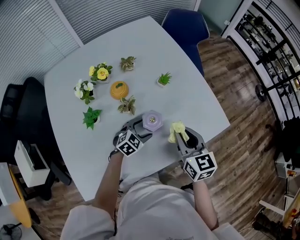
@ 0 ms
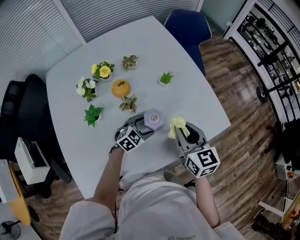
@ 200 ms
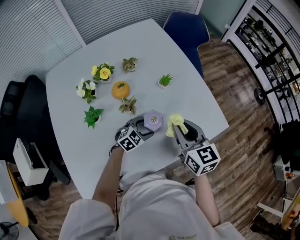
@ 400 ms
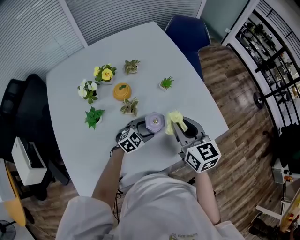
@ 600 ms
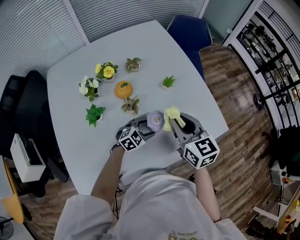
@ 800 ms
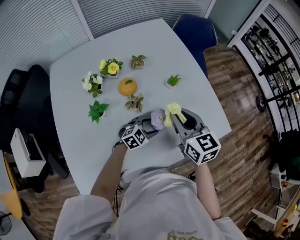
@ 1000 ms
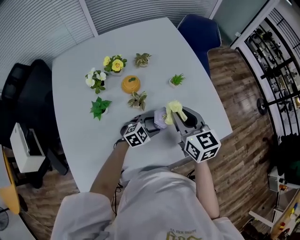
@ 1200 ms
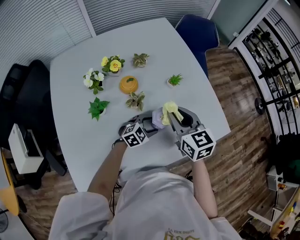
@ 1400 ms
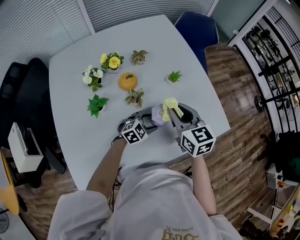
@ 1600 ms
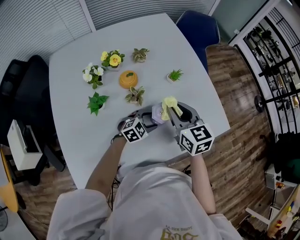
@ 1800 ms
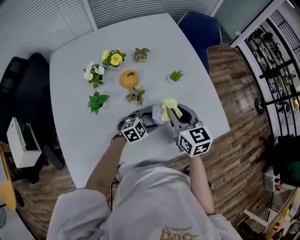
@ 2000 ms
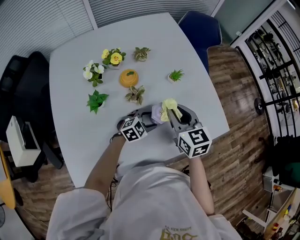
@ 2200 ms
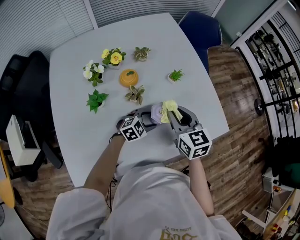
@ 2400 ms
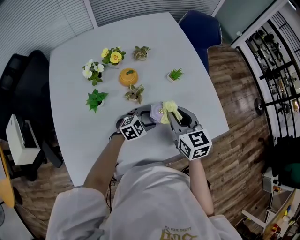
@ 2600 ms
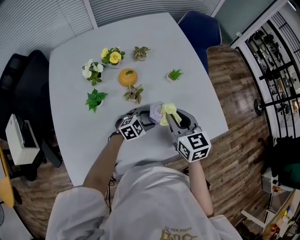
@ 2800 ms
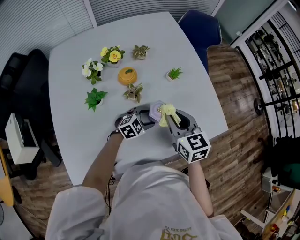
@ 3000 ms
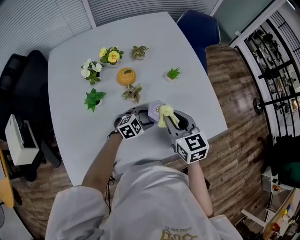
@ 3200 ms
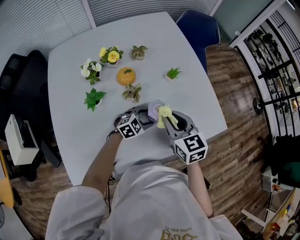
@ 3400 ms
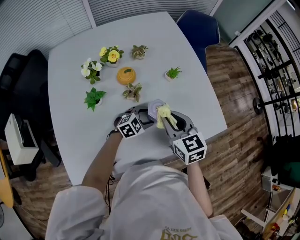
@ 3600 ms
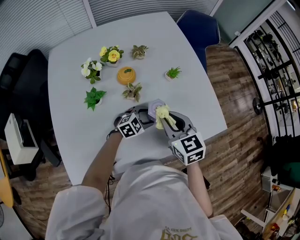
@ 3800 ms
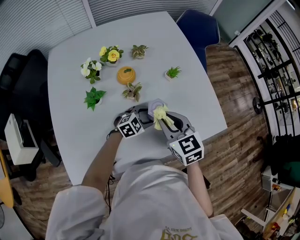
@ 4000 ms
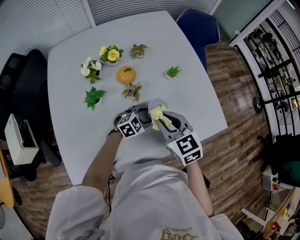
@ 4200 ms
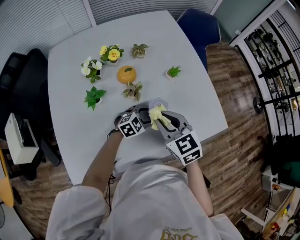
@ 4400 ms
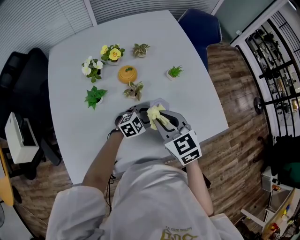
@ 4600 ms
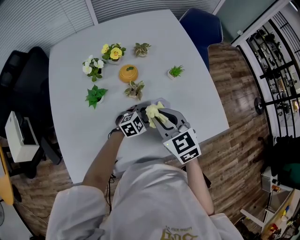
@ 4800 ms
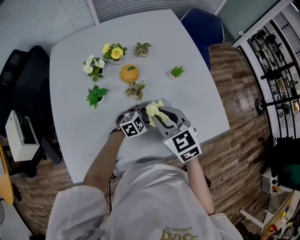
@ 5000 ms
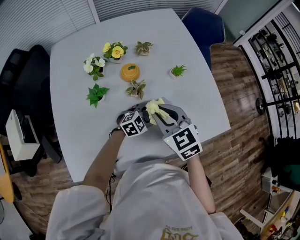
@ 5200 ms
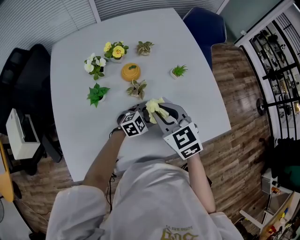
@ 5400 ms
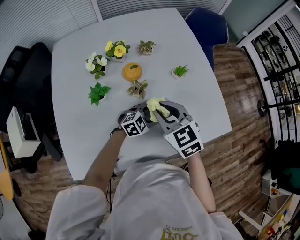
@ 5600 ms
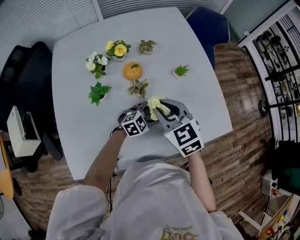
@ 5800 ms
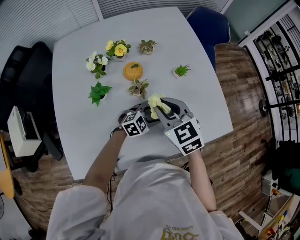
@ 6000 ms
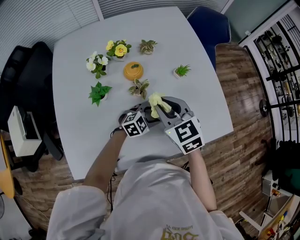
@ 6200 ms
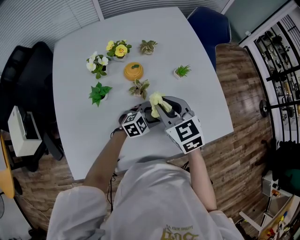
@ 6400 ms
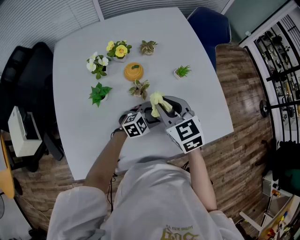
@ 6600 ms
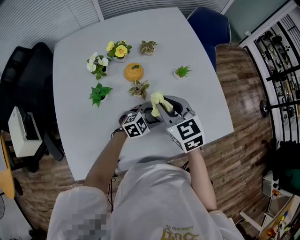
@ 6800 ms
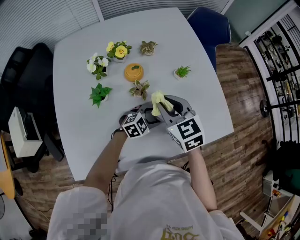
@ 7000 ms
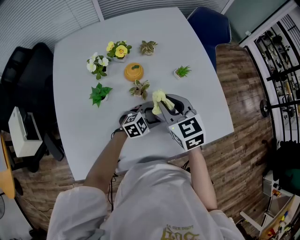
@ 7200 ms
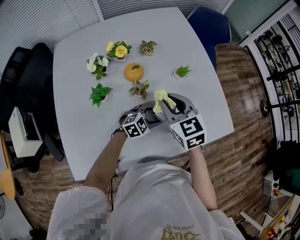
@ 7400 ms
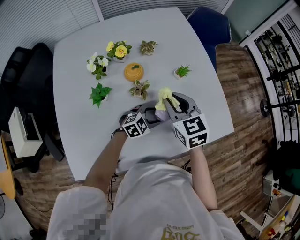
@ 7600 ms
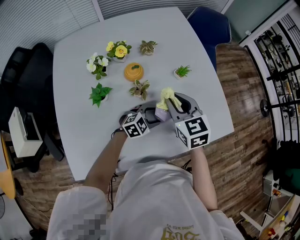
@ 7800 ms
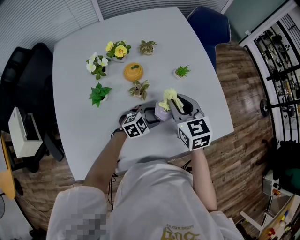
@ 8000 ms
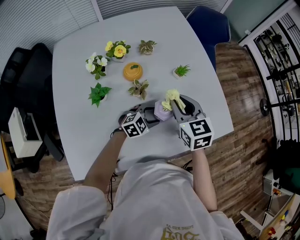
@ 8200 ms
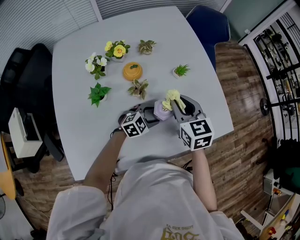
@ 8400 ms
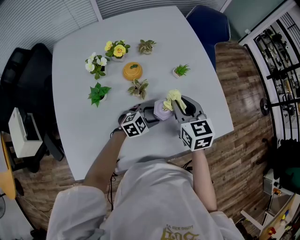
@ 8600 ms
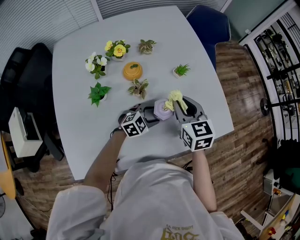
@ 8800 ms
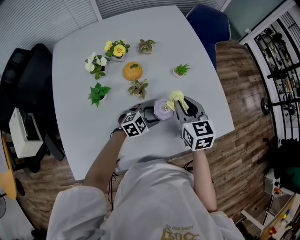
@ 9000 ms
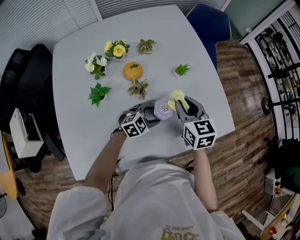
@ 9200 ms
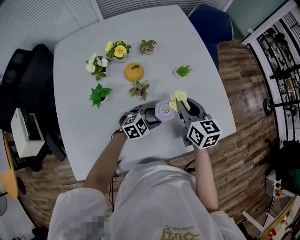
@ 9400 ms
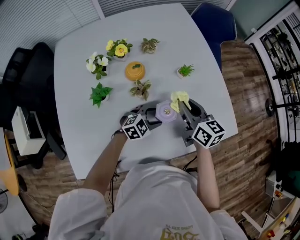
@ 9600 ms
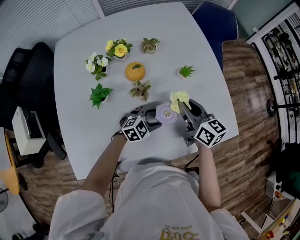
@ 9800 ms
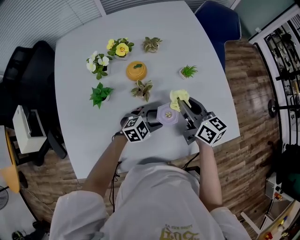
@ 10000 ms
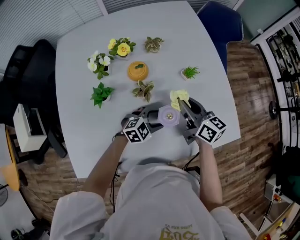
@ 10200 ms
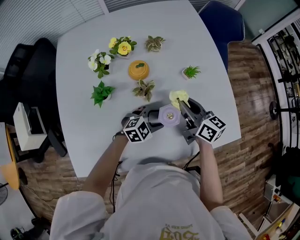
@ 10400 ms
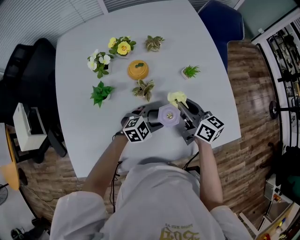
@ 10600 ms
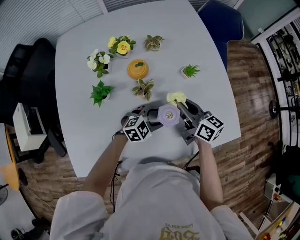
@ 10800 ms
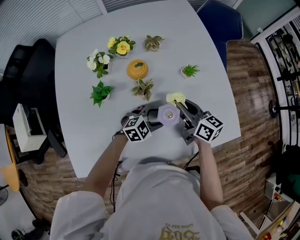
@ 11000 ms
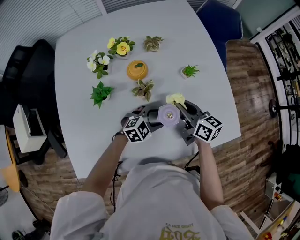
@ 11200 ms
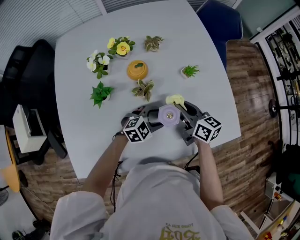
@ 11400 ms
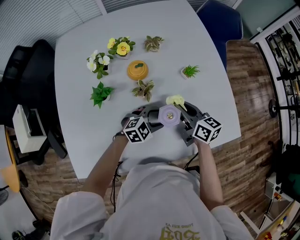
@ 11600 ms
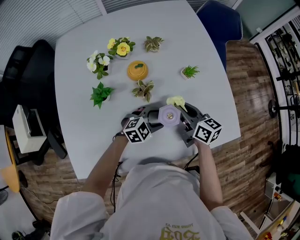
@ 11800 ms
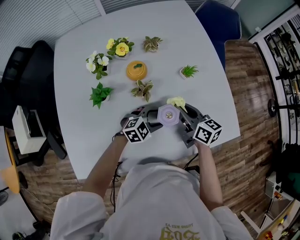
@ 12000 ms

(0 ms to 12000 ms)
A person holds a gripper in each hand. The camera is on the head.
0 ms - 1600 ms: The right gripper shifts approximately 10 cm to the left.
1600 ms - 3000 ms: There are only small adjustments of the grippers.
3000 ms - 4400 ms: The right gripper changes place by some 5 cm.
4400 ms - 6000 ms: The right gripper changes place by some 5 cm.
6000 ms - 7600 ms: The grippers stay close to where they were, moving slightly.
7600 ms - 9000 ms: The right gripper shifts roughly 5 cm to the right.
9000 ms - 10400 ms: The right gripper ends up approximately 5 cm from where it was, and rotates some 40 degrees.
10400 ms - 12000 ms: The grippers stay close to where they were, moving slightly.

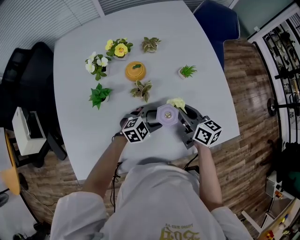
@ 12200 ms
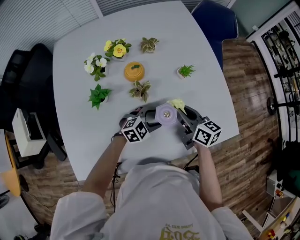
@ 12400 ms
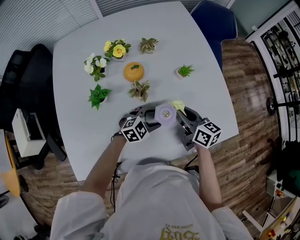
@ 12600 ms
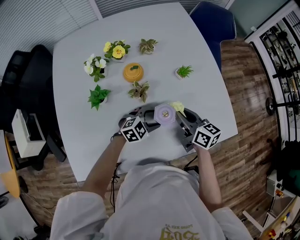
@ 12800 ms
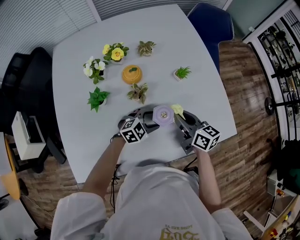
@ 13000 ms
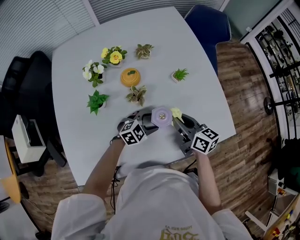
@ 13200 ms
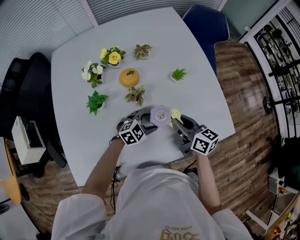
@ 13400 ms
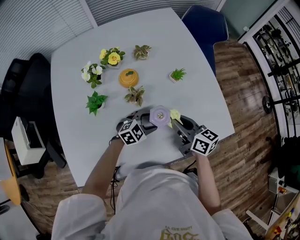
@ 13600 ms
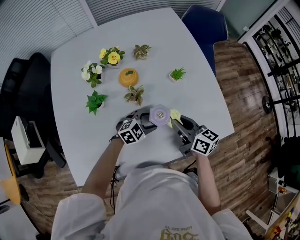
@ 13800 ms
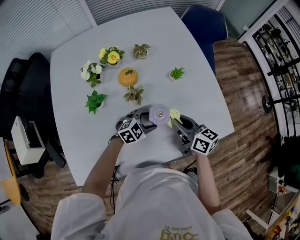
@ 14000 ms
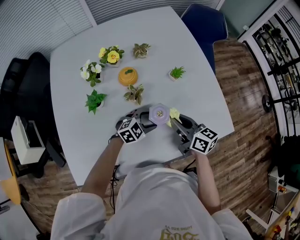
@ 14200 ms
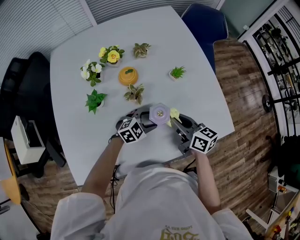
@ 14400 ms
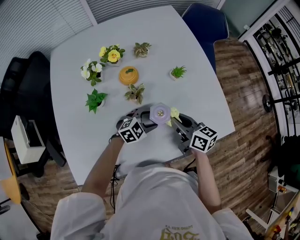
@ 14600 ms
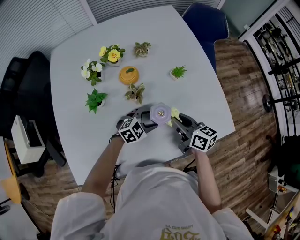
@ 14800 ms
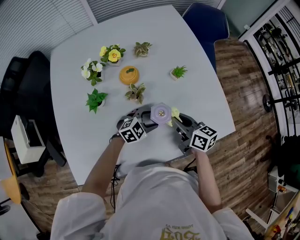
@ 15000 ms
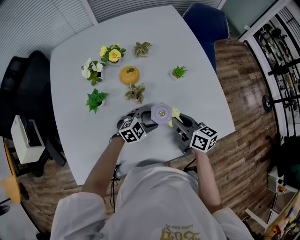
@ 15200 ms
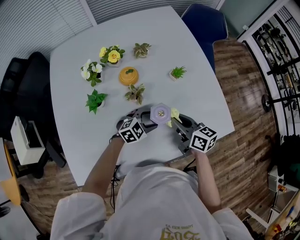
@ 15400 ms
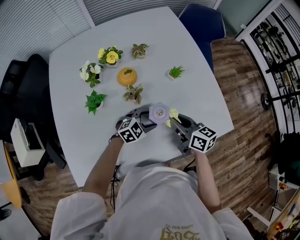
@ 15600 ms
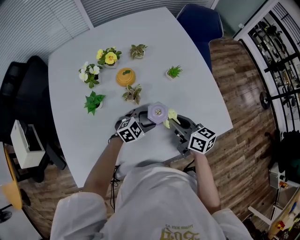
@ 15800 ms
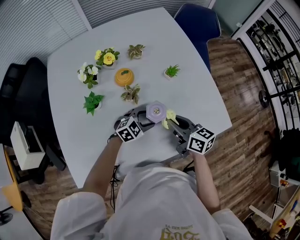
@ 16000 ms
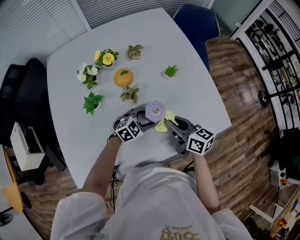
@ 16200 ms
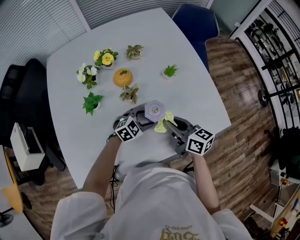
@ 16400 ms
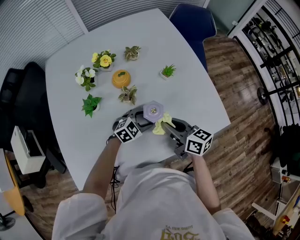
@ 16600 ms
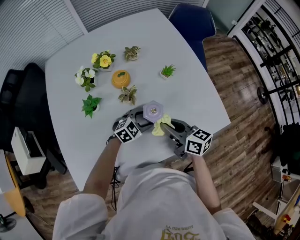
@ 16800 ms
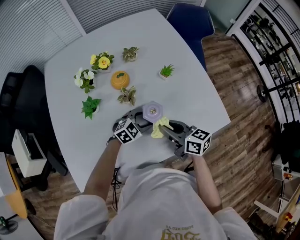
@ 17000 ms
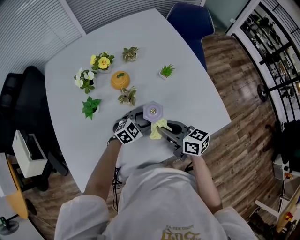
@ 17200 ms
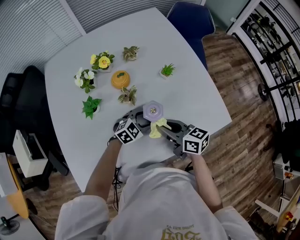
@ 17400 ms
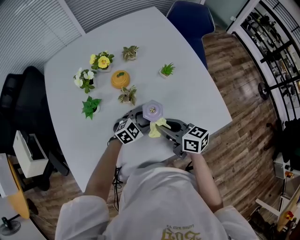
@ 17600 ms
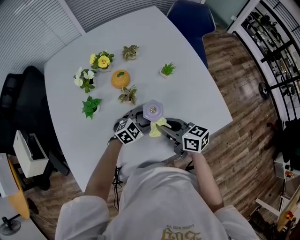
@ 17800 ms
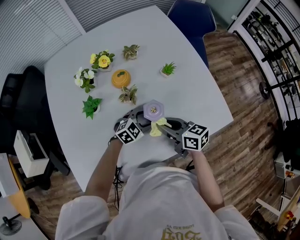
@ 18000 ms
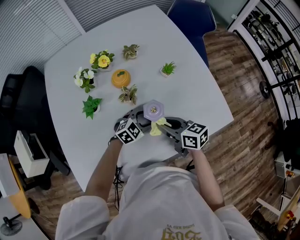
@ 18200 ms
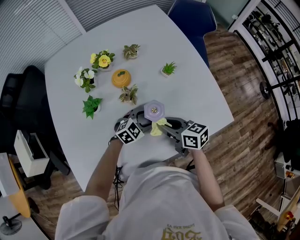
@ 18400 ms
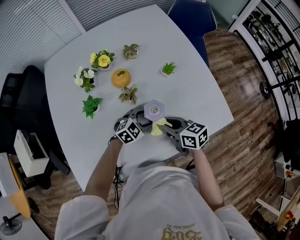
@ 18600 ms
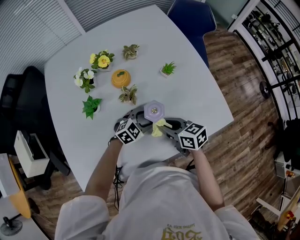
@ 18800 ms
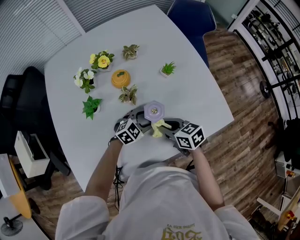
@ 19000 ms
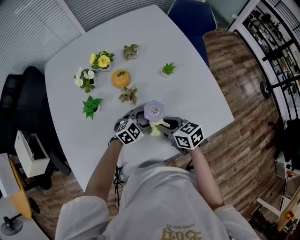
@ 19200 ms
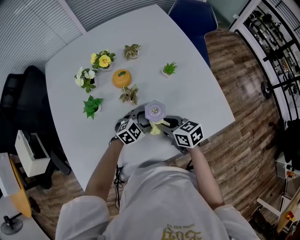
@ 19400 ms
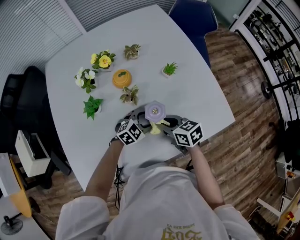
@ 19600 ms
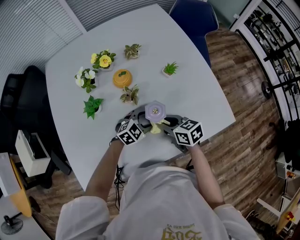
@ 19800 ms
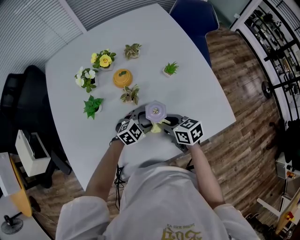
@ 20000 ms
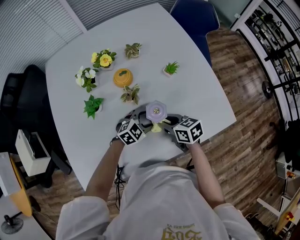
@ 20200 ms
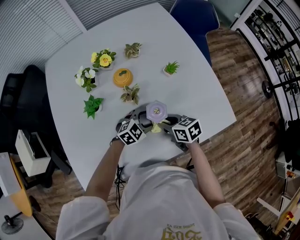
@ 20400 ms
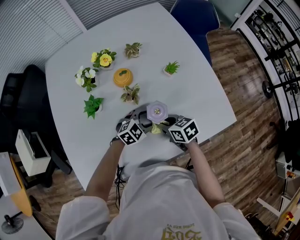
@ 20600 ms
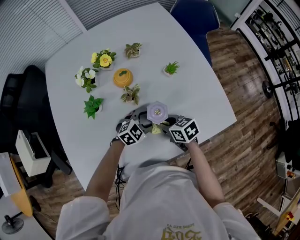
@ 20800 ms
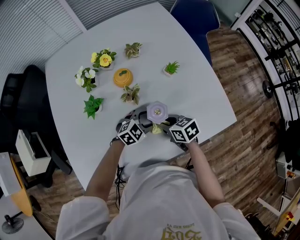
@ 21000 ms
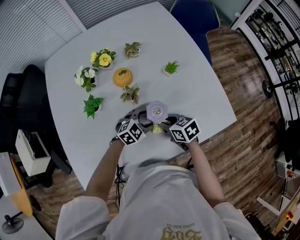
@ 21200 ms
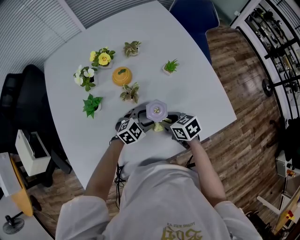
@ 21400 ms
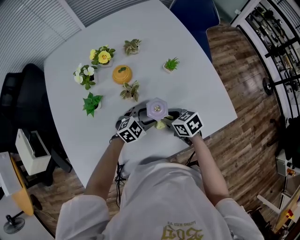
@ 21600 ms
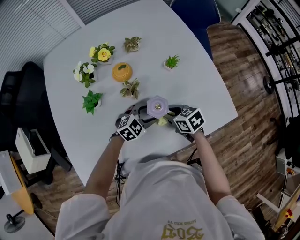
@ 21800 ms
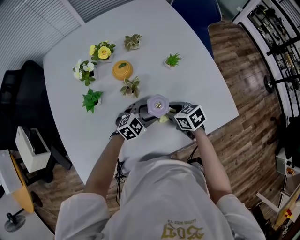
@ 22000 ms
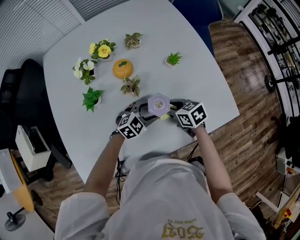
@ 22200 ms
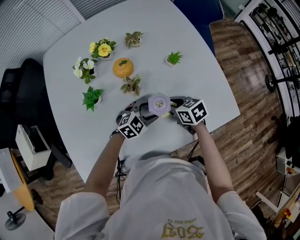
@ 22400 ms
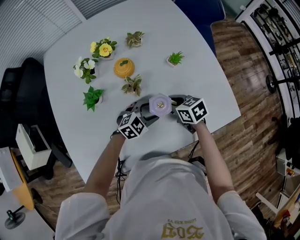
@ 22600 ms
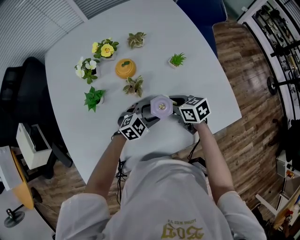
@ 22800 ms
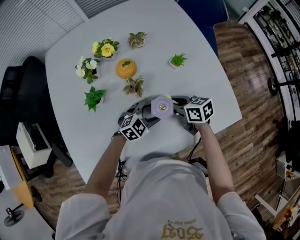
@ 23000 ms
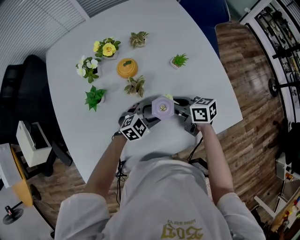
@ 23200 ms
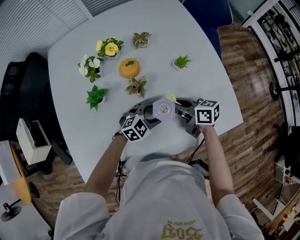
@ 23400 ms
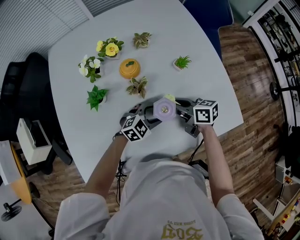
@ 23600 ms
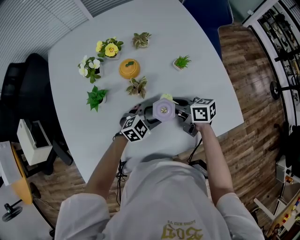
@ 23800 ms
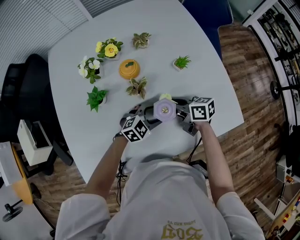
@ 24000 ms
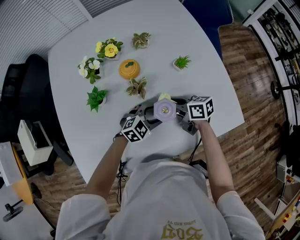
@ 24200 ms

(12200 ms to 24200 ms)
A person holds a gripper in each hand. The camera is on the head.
12200 ms - 13800 ms: The right gripper ends up approximately 5 cm from where it was.
13800 ms - 18200 ms: The grippers make only small movements.
18200 ms - 19800 ms: The grippers move only a little.
19800 ms - 21200 ms: There are only small adjustments of the grippers.
21200 ms - 22600 ms: The right gripper heads forward, covering about 5 cm.
22600 ms - 24200 ms: The right gripper swivels about 30 degrees.
